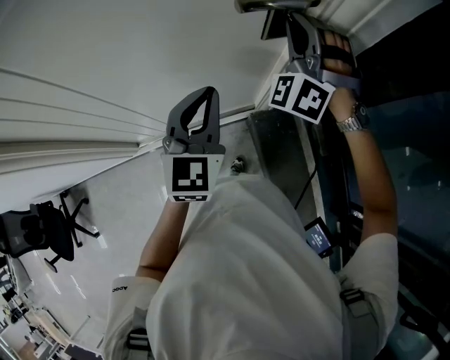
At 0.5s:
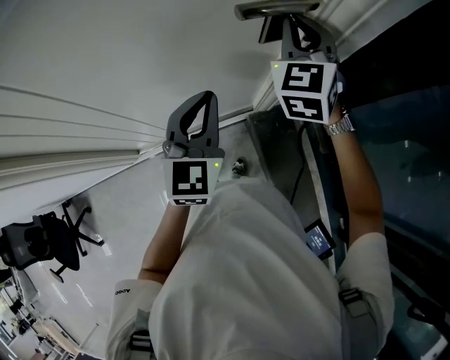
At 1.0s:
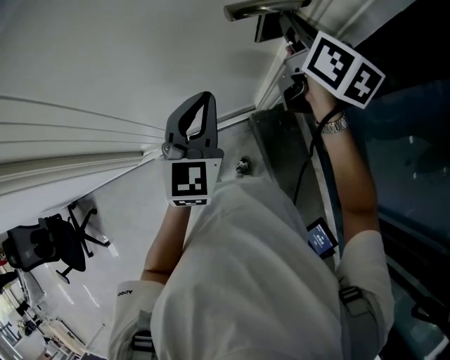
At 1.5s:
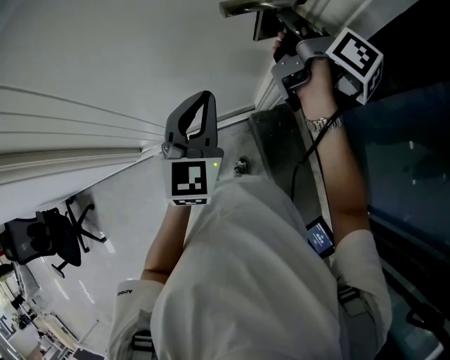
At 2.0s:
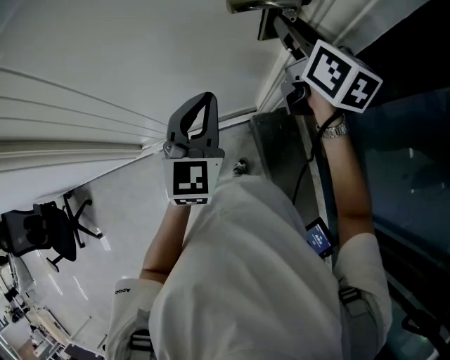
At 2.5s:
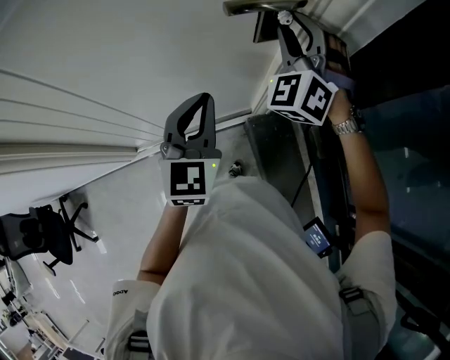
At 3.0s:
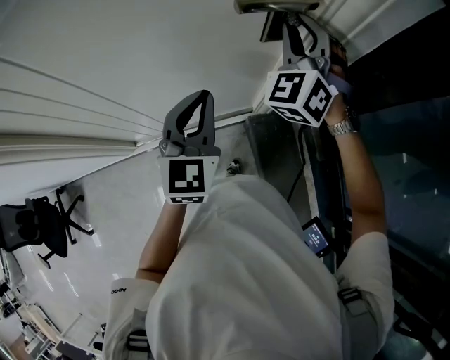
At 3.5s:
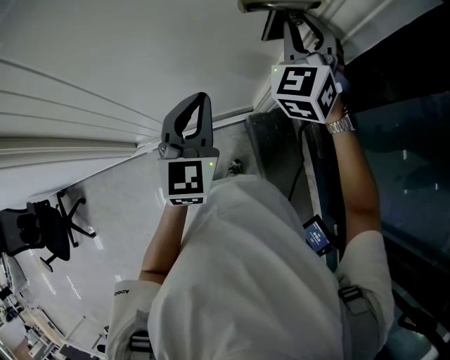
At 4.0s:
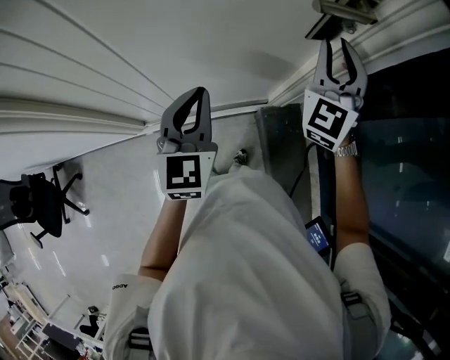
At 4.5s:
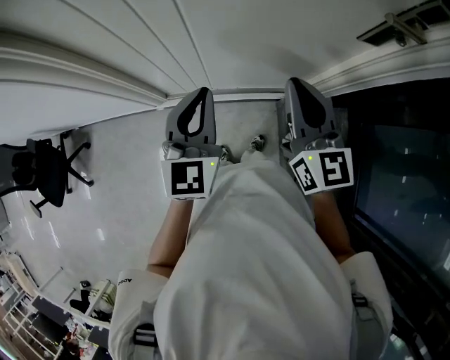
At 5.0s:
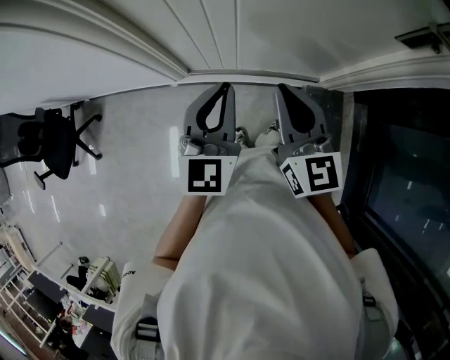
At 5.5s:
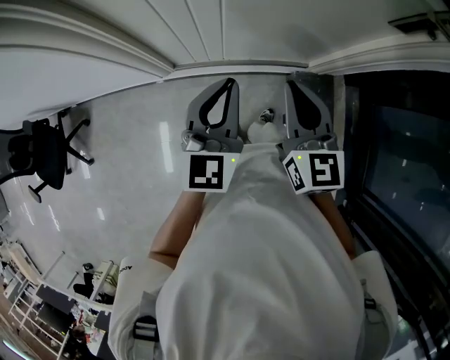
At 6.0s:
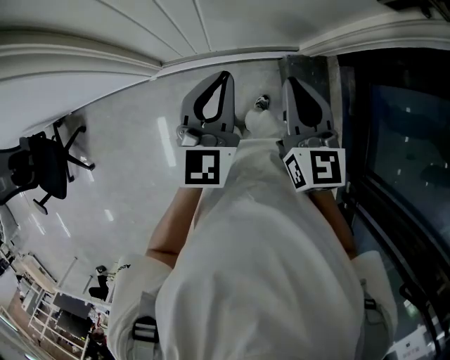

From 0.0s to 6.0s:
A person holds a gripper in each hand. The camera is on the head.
From 0.0s to 2.0s: The right gripper twists about 100 degrees clockwise, seen from behind.
From 2.0s to 4.0s: The right gripper ends up about 5 cm from where it was, and twists about 60 degrees counterclockwise, seen from behind. Meanwhile the left gripper goes roughly 10 cm to the left.
From 4.0s to 6.0s: The left gripper travels to the left and backward by roughly 15 cm; the right gripper travels to the left, backward and downward by approximately 30 cm, swivels some 50 degrees, and closes up.

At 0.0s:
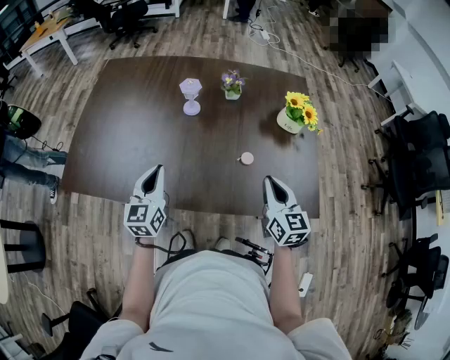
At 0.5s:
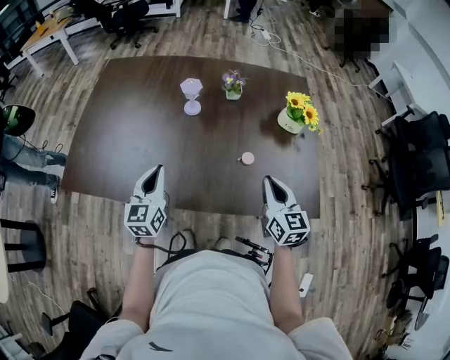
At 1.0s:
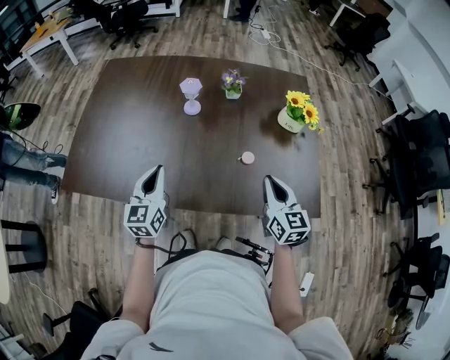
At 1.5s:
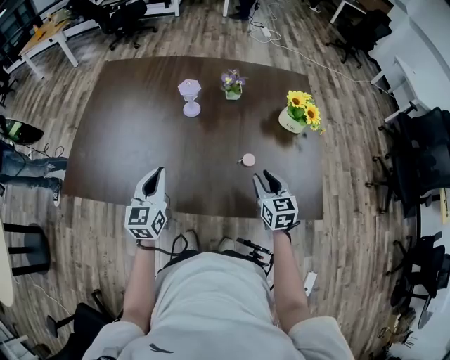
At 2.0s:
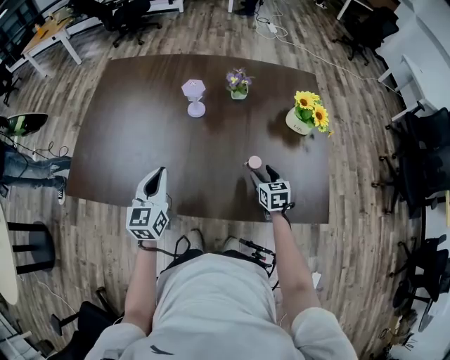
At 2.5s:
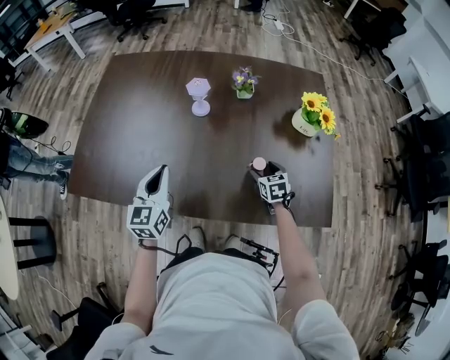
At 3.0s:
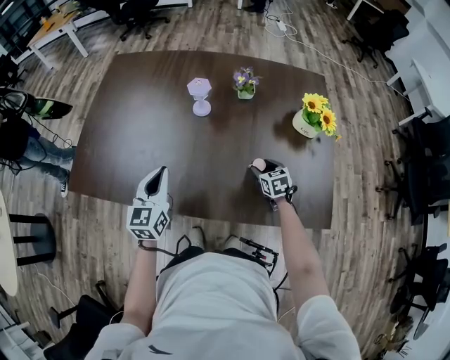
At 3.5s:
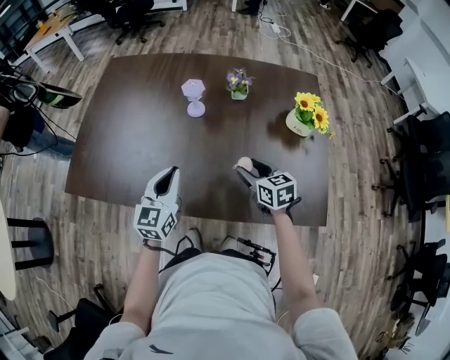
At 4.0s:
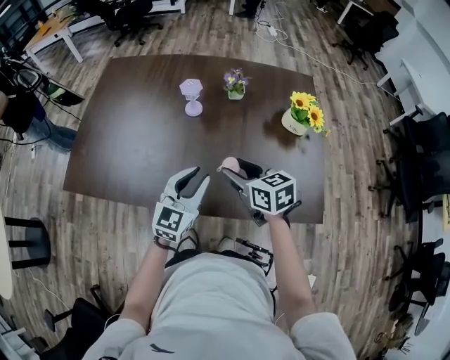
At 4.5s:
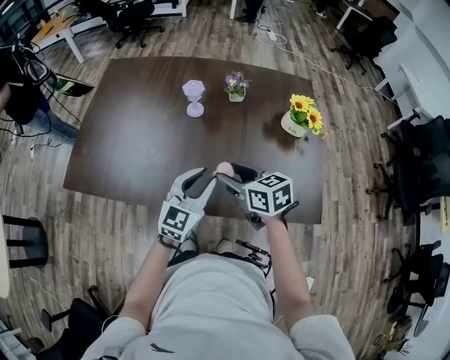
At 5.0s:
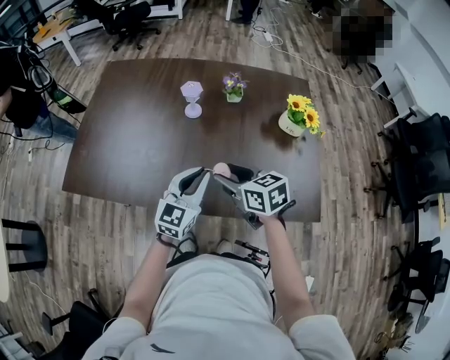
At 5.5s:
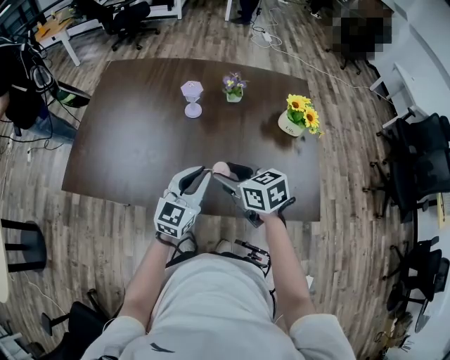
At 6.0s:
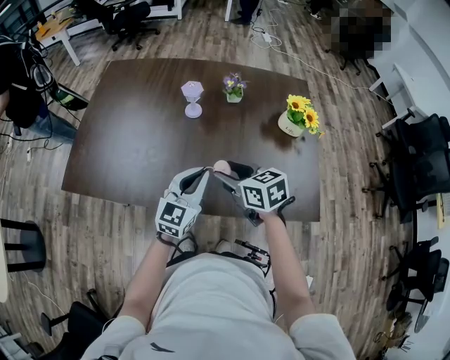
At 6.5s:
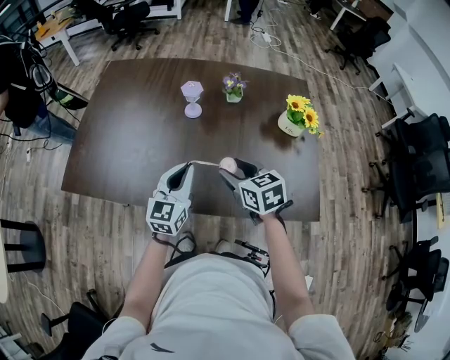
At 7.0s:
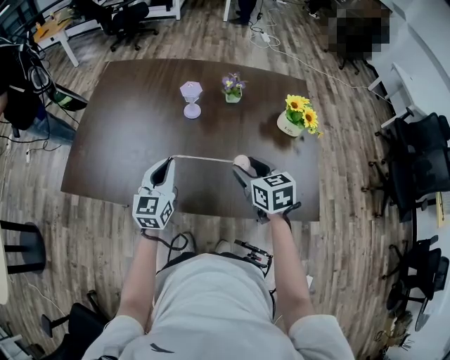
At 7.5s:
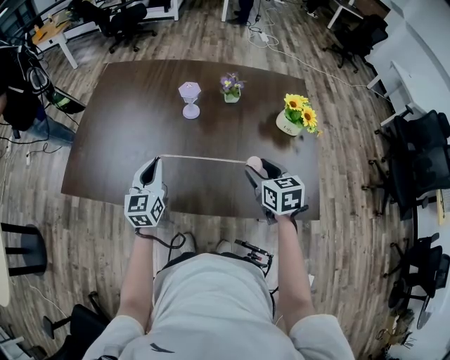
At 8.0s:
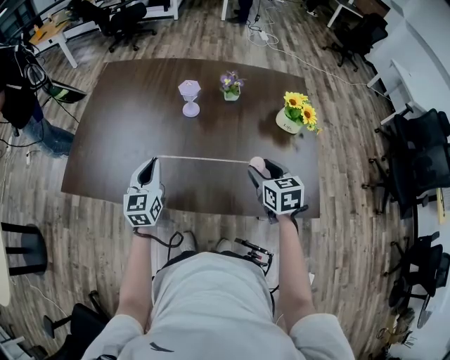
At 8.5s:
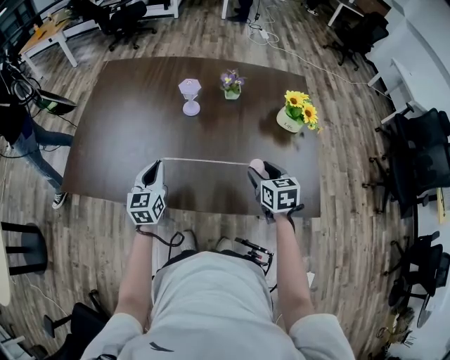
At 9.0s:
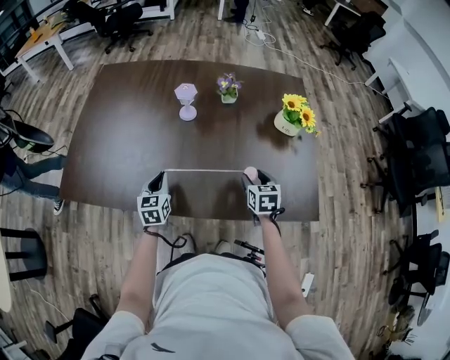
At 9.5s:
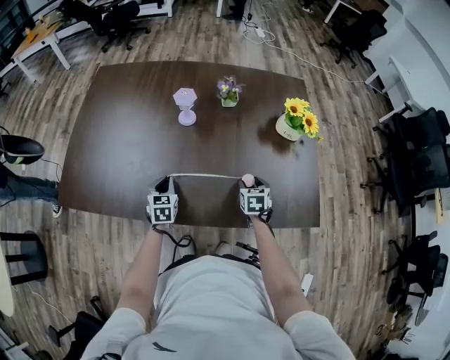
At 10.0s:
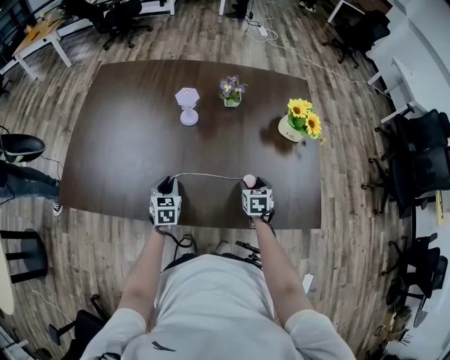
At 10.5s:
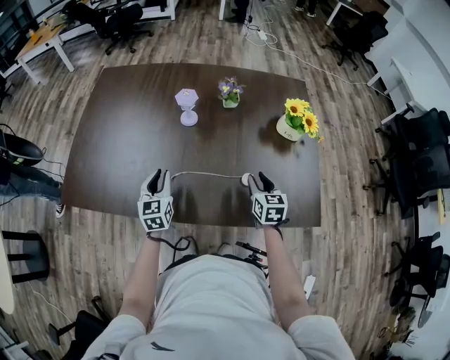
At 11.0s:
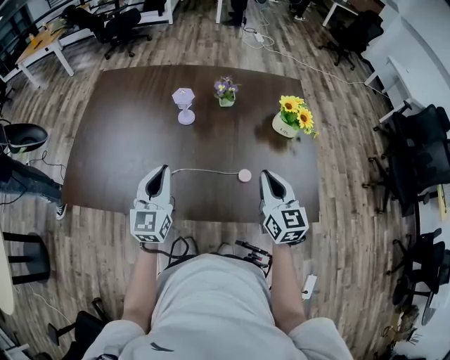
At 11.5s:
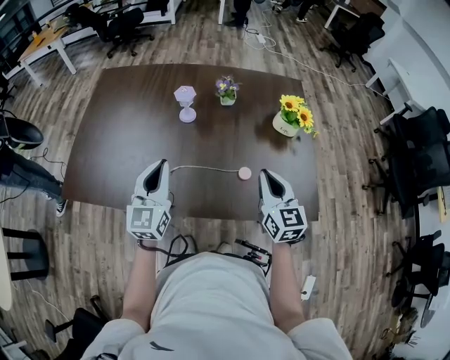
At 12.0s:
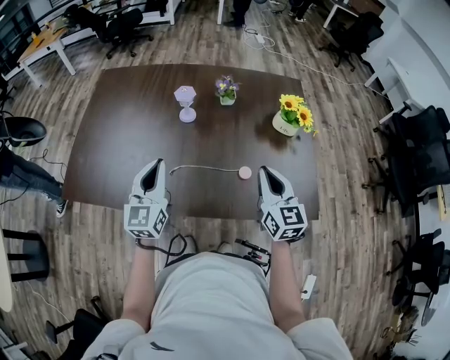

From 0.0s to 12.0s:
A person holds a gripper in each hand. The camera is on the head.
From 0.0s to 2.0s: The right gripper moves downward and forward, some 20 cm, turns by some 30 degrees, and opens its fingers.
From 2.0s to 4.0s: The right gripper shifts some 20 cm upward and to the left, and turns by approximately 30 degrees. The left gripper goes about 15 cm to the right, turns by roughly 20 degrees, and opens up.
From 4.0s to 6.0s: The left gripper closes up.
From 6.0s to 8.0s: The left gripper travels to the left by about 15 cm, and turns by about 20 degrees. Meanwhile the right gripper is displaced to the right by approximately 10 cm, and turns by about 20 degrees.
From 8.0s to 10.0s: The two grippers go approximately 20 cm downward. The left gripper changes its angle by some 30 degrees.
From 10.0s to 12.0s: Both grippers move upward, approximately 25 cm. The right gripper tilts its fingers roughly 40 degrees upward, and closes its fingers. Meanwhile the left gripper tilts its fingers about 40 degrees upward.

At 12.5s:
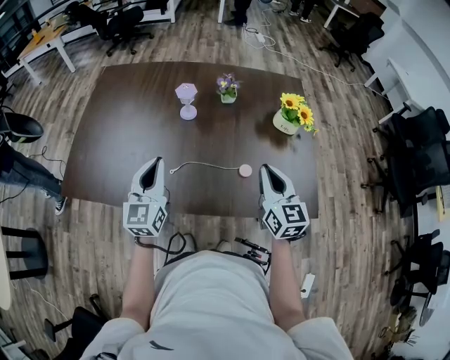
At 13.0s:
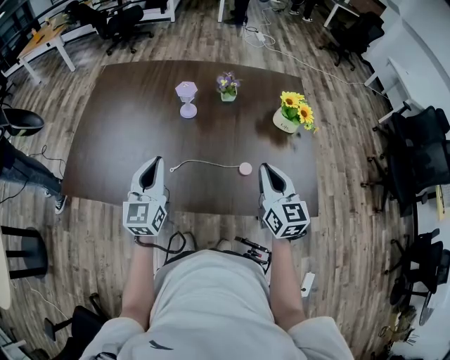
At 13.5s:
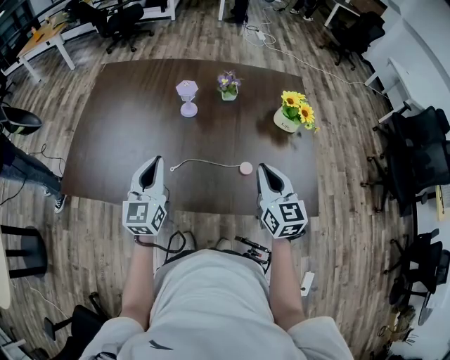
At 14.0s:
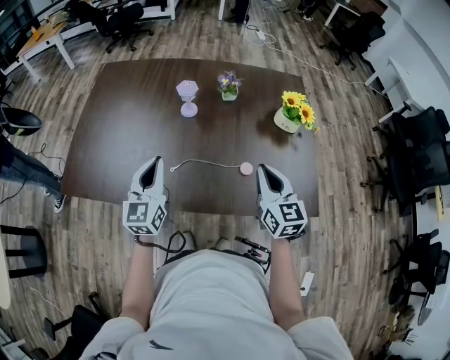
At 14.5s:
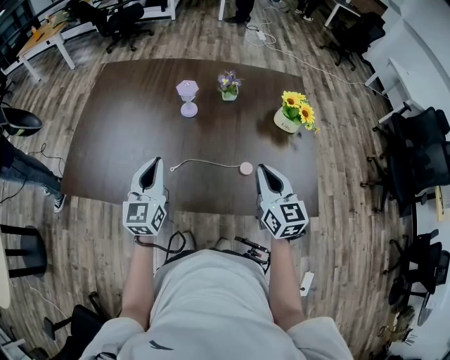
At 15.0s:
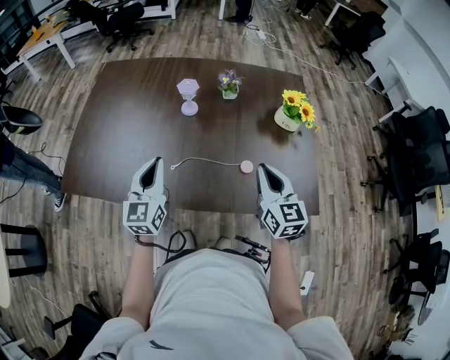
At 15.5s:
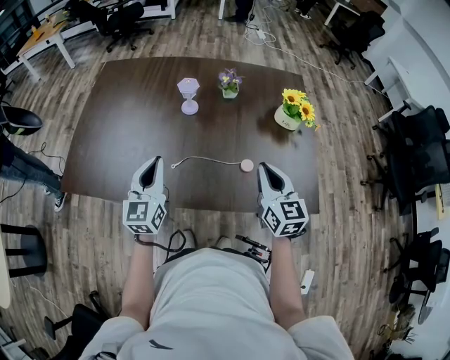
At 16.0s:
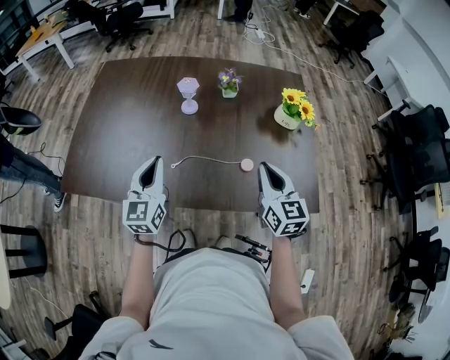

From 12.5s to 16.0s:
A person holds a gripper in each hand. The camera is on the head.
From 12.5s to 14.5s: The grippers stay close to where they were, moving slightly.
From 14.5s to 16.0s: Both grippers stay put.

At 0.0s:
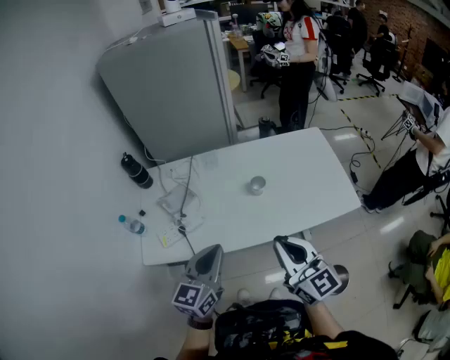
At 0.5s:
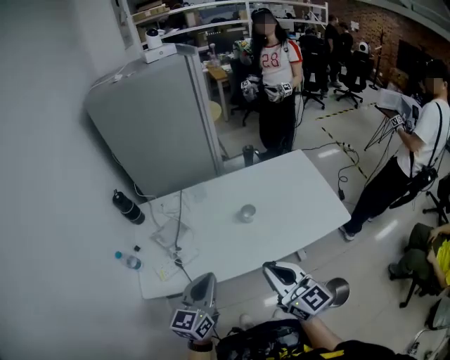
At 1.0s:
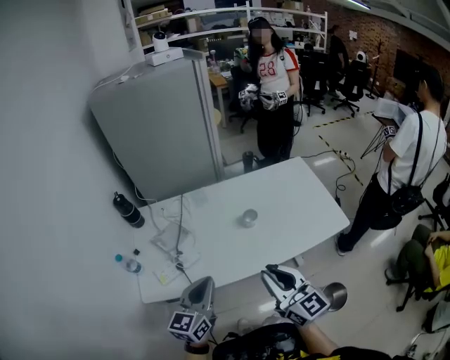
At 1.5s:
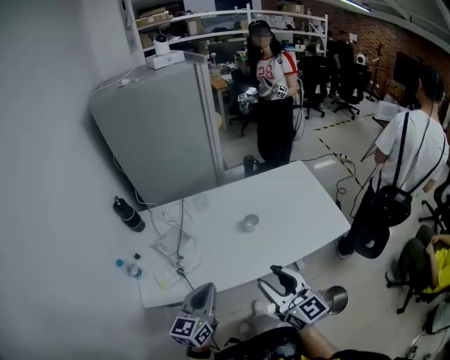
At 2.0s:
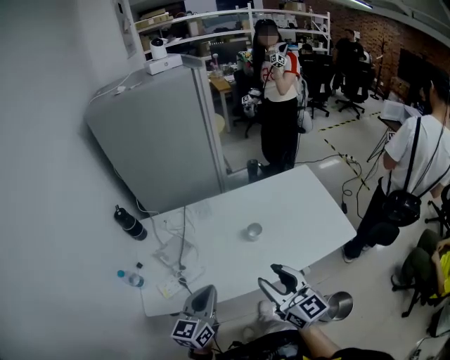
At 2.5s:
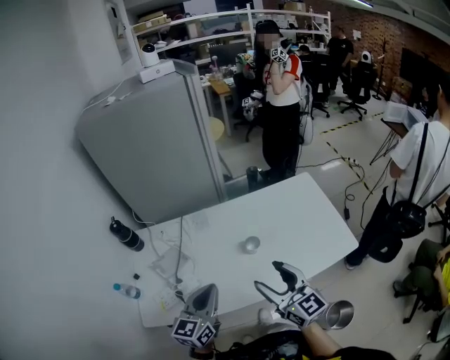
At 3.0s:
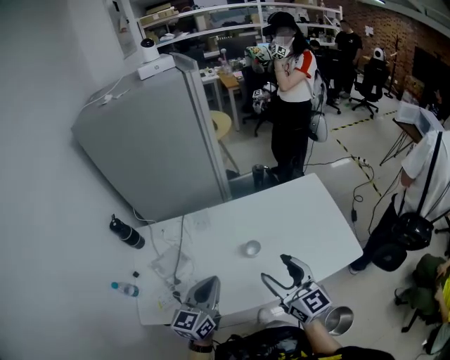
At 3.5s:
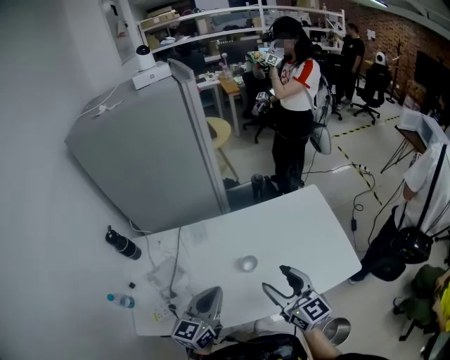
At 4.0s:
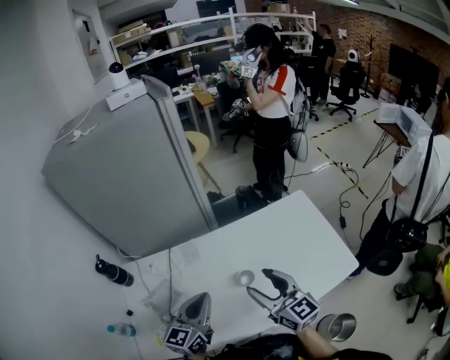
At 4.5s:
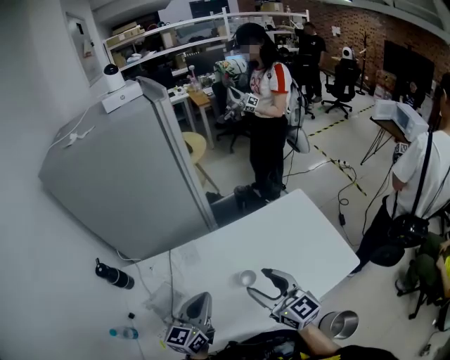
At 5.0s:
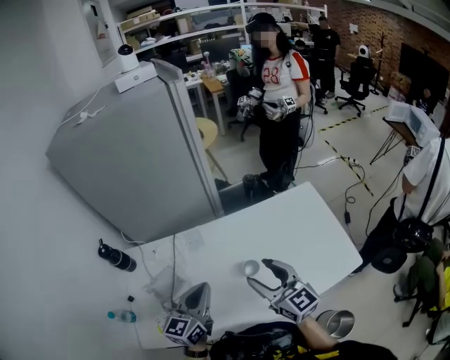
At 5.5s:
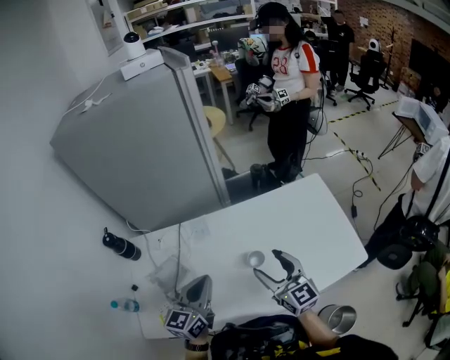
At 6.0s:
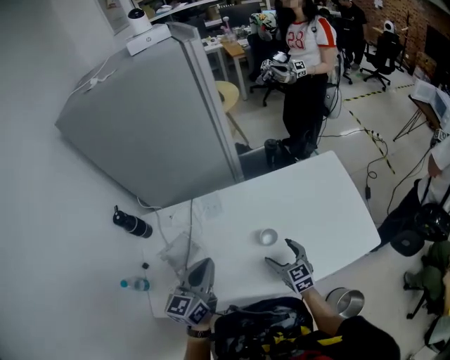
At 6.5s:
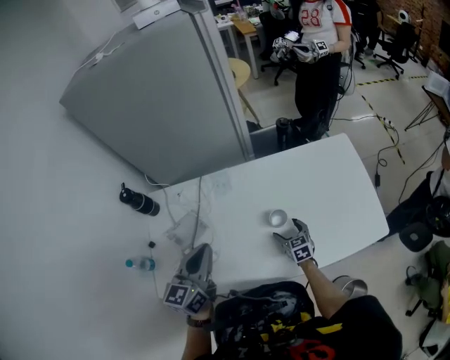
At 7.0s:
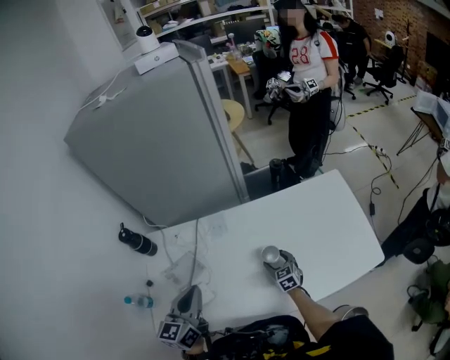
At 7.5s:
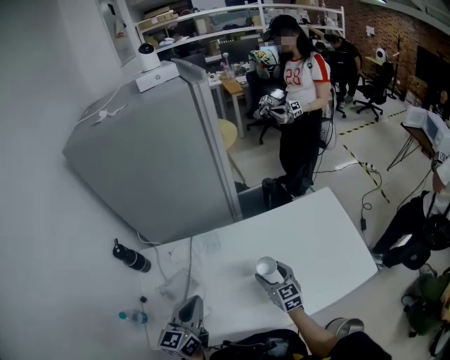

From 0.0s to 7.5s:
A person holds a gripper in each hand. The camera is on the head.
From 0.0s to 2.0s: The left gripper moves about 5 cm, while the right gripper goes approximately 5 cm forward, and opens.
From 2.0s to 4.0s: Both grippers move forward, some 20 cm.
From 4.0s to 5.5s: The right gripper is displaced downward by about 5 cm.
From 5.5s to 7.5s: The right gripper moves downward and forward, roughly 15 cm. The left gripper is displaced to the left by approximately 5 cm.
